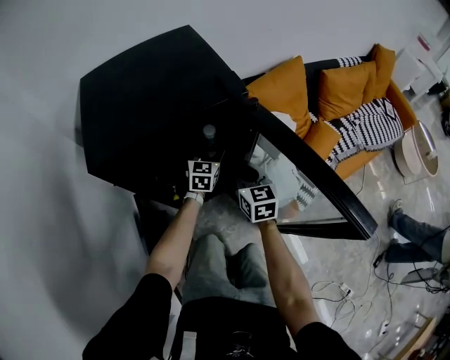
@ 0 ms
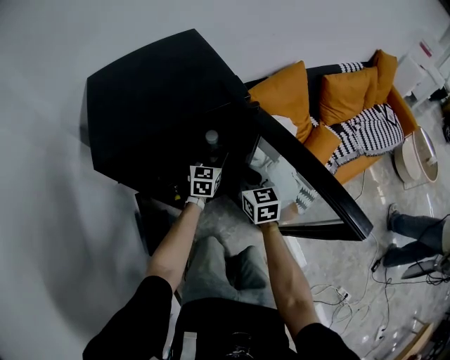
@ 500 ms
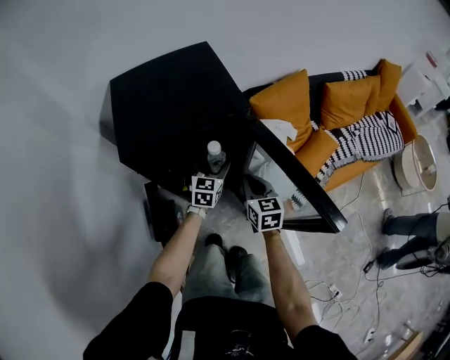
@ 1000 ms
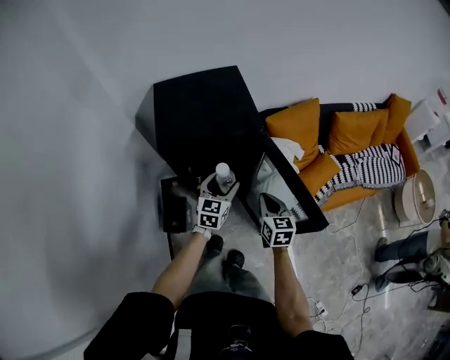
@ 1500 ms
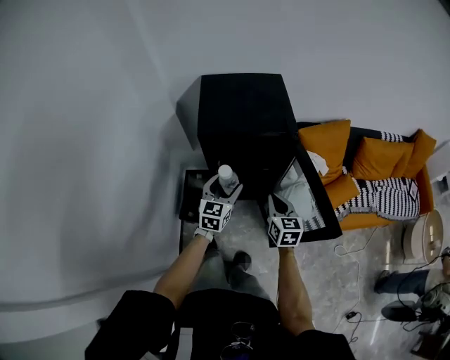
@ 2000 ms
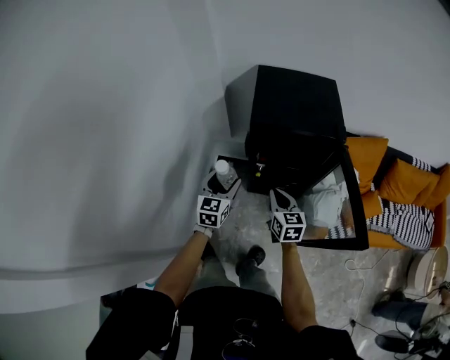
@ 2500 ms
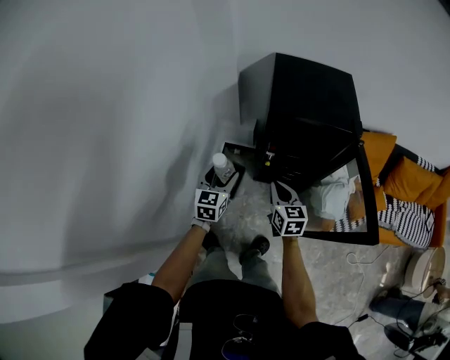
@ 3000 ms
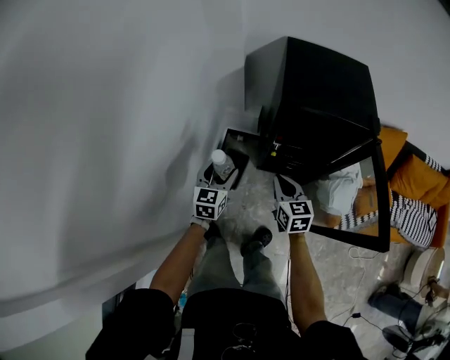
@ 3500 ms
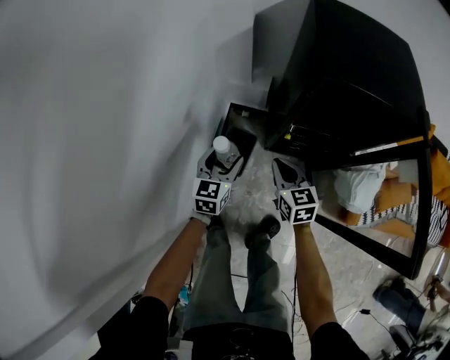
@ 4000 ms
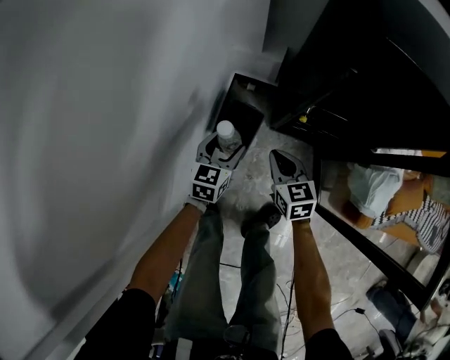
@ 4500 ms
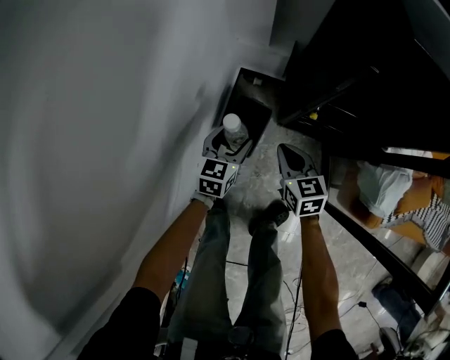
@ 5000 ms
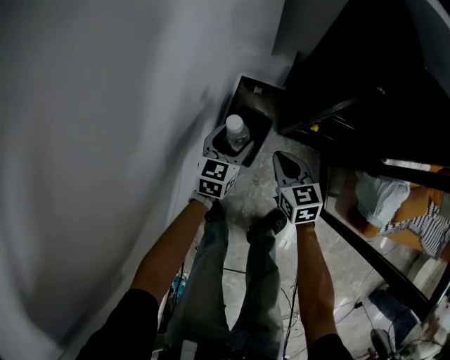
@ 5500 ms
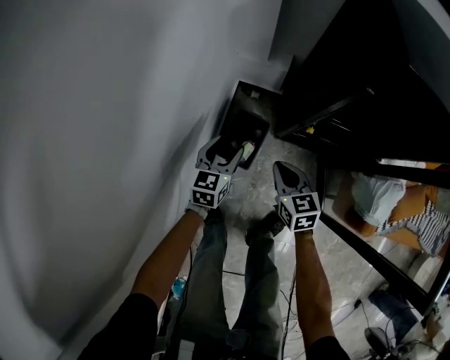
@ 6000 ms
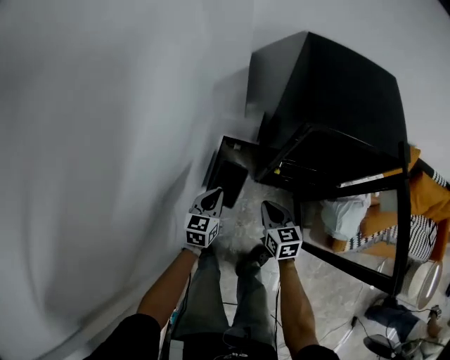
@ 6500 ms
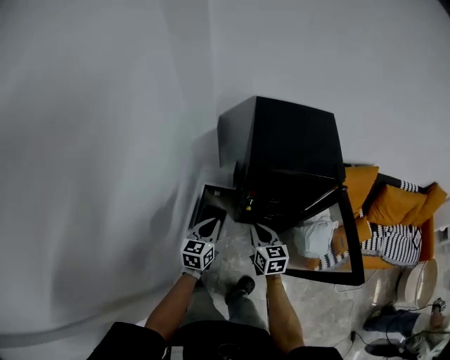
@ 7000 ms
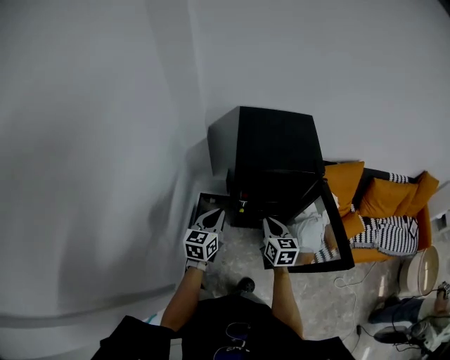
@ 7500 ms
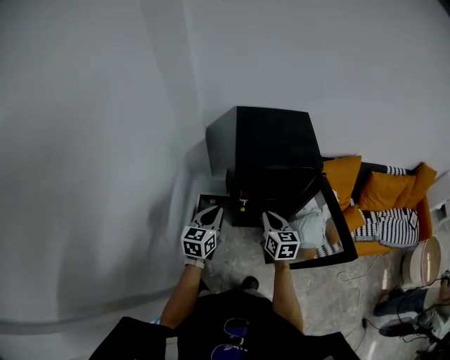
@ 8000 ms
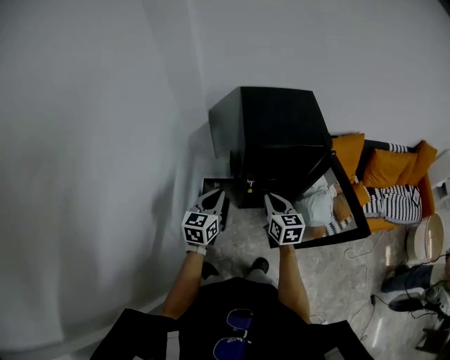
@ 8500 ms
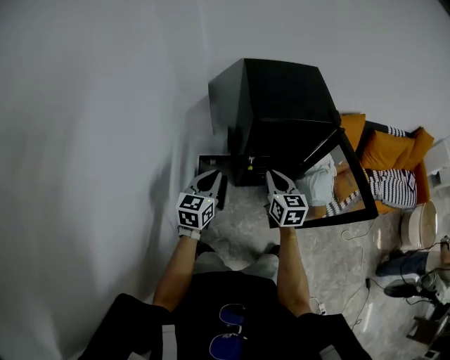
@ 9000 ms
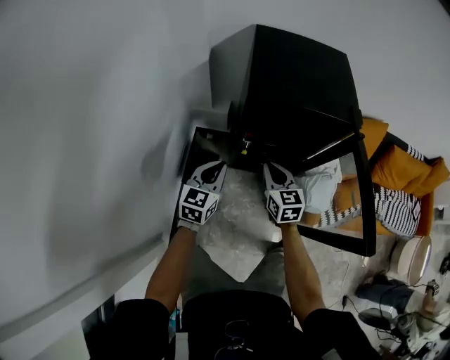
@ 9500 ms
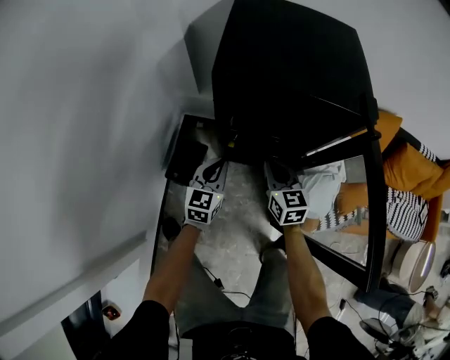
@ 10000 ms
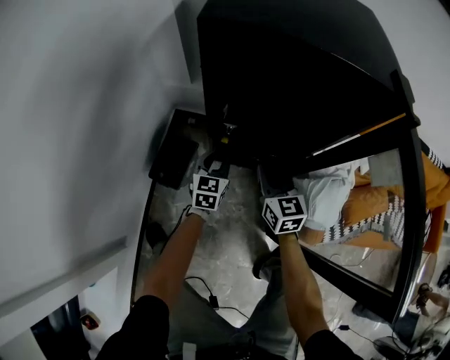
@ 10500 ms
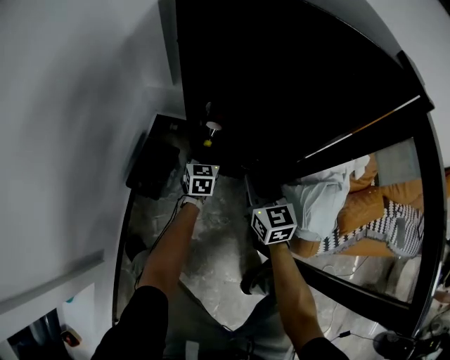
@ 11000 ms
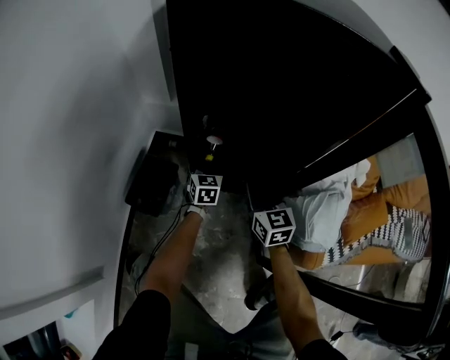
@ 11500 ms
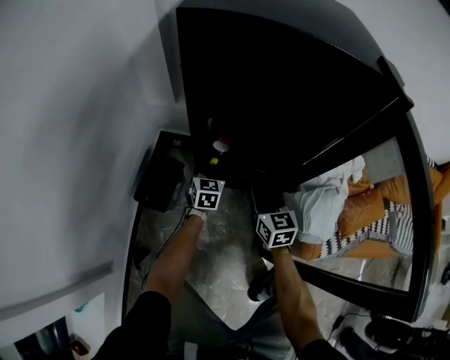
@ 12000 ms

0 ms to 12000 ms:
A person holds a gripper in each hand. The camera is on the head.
0 ms to 2000 ms: The right gripper shifts approximately 25 cm upward and backward; the left gripper travels backward, upward and to the left by roughly 40 cm.
2000 ms to 4000 ms: The grippers both shift to the left and downward by roughly 35 cm. The right gripper changes its angle by some 30 degrees.
4000 ms to 6000 ms: Both grippers move downward, roughly 15 cm.
6000 ms to 8000 ms: The left gripper travels upward by roughly 40 cm, and closes; the right gripper moves upward and to the right, about 40 cm, and changes its angle by roughly 30 degrees.
8000 ms to 10000 ms: The right gripper is displaced downward and forward by roughly 25 cm. Meanwhile the left gripper goes some 30 cm downward.
10000 ms to 12000 ms: The two grippers go about 20 cm downward. The left gripper opens.

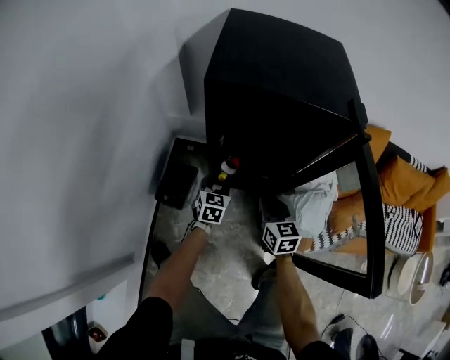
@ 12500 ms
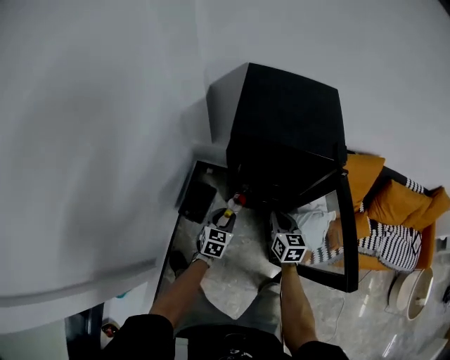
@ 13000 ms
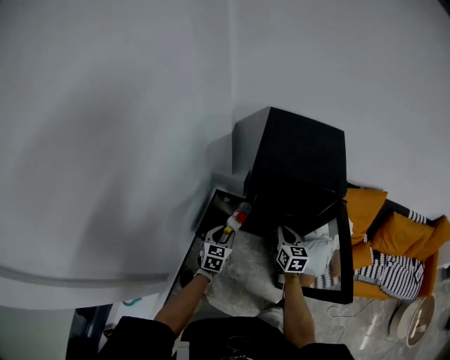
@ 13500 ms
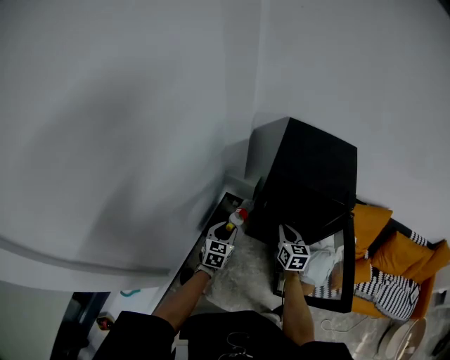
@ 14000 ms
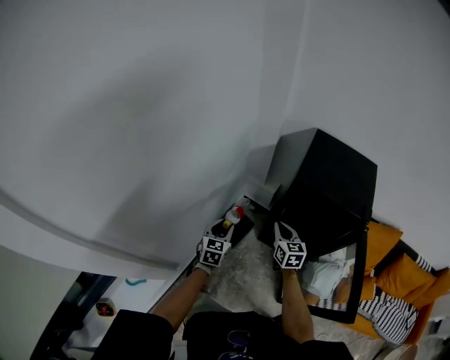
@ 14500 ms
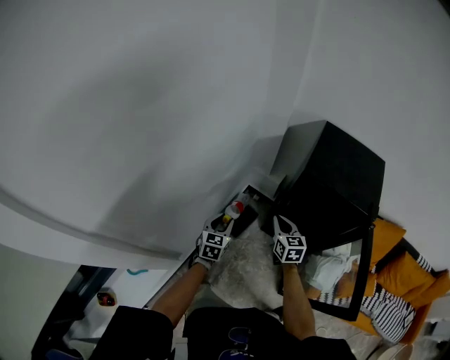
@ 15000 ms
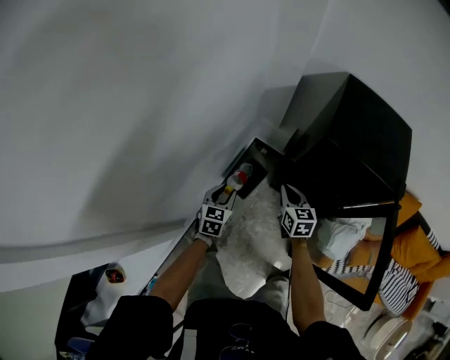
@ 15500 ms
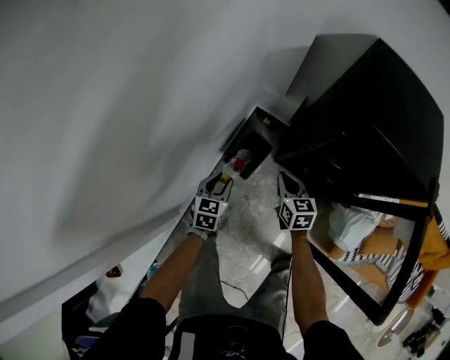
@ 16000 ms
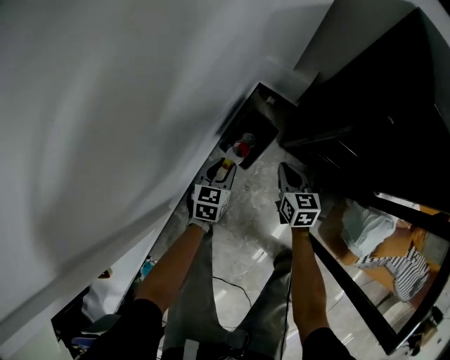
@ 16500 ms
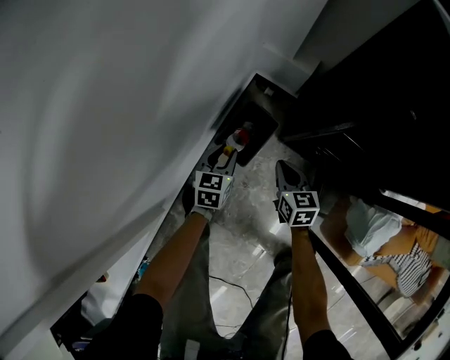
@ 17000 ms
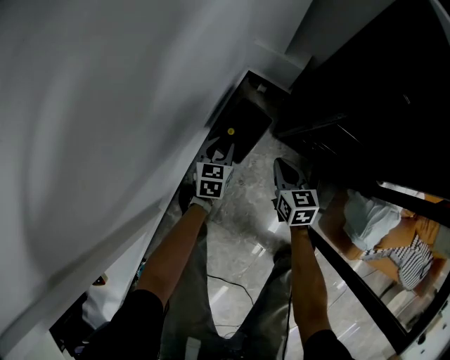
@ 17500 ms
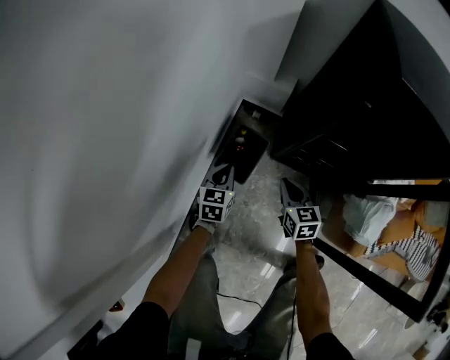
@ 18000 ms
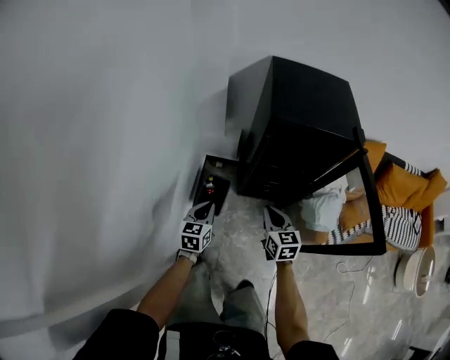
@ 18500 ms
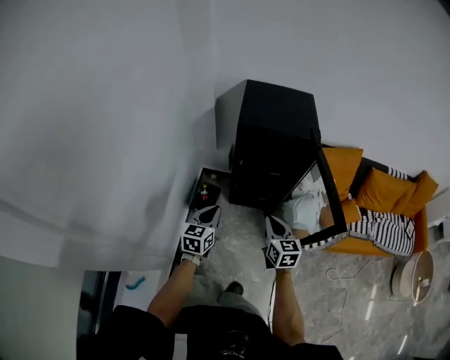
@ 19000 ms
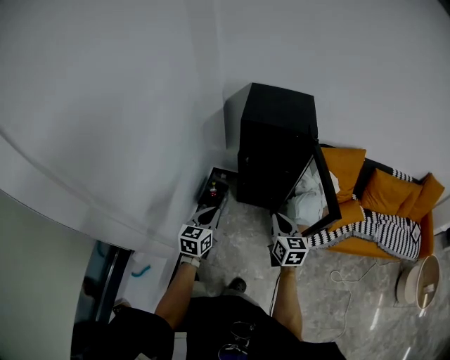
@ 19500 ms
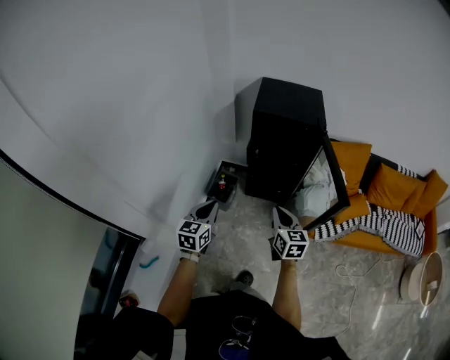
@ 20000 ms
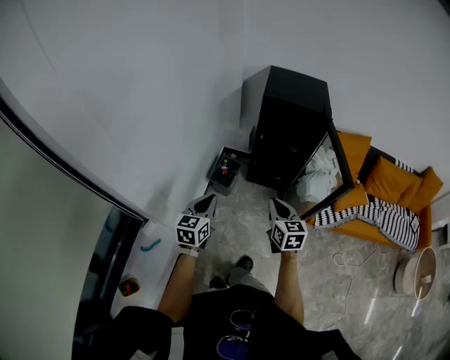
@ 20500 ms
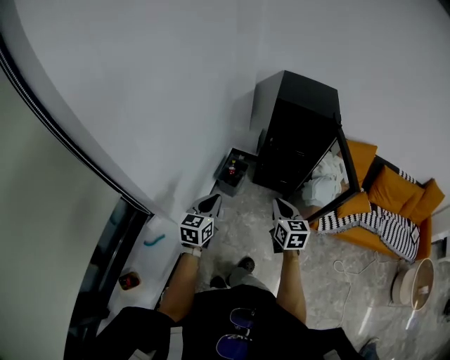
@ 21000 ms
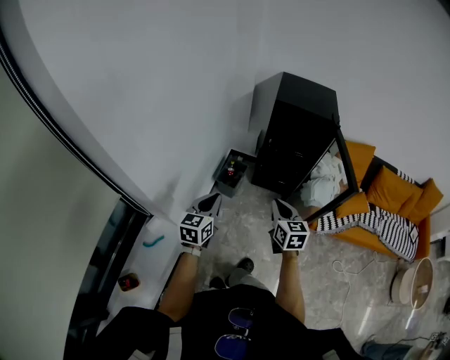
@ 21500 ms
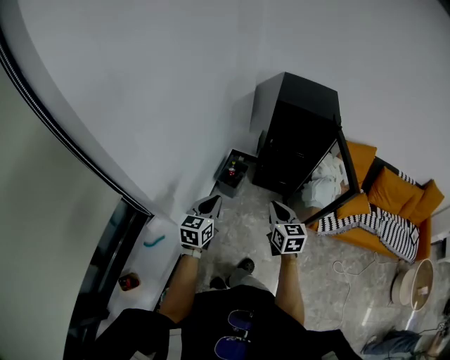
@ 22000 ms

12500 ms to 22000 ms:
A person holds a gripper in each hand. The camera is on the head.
12500 ms to 14500 ms: The right gripper moves upward and to the left, approximately 30 cm. Meanwhile the left gripper moves upward, to the left and backward, some 40 cm, and turns by some 20 degrees.
14500 ms to 16500 ms: Both grippers move downward, some 35 cm.
16500 ms to 18000 ms: The left gripper reaches roughly 5 cm downward, then returns, and closes.
18000 ms to 20000 ms: Both grippers move upward and backward, approximately 60 cm. The right gripper changes its angle by some 20 degrees.
20000 ms to 22000 ms: The left gripper moves backward and to the left, approximately 15 cm, while the right gripper goes some 15 cm to the left and backward.

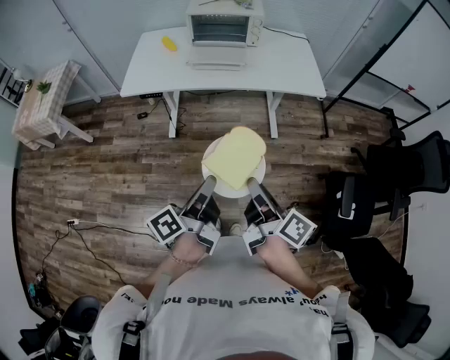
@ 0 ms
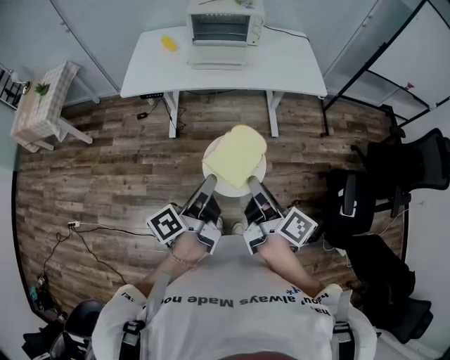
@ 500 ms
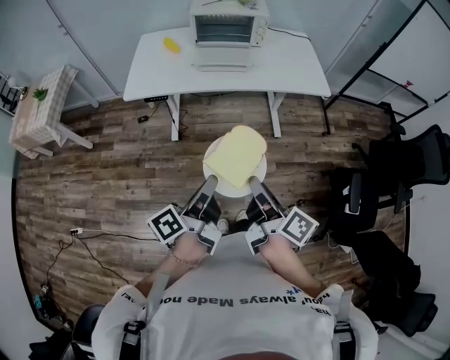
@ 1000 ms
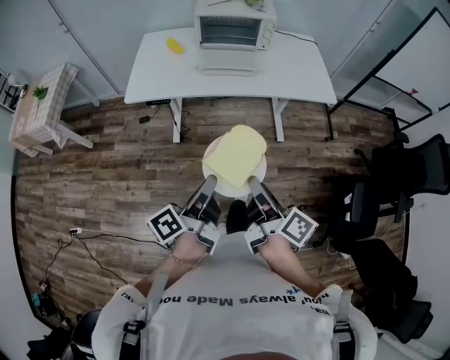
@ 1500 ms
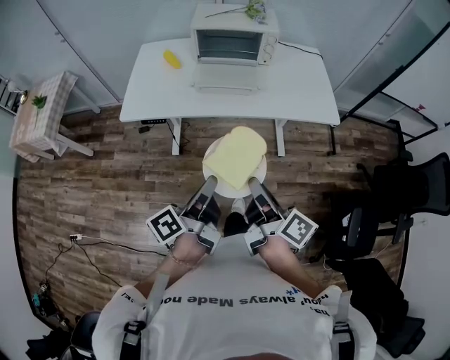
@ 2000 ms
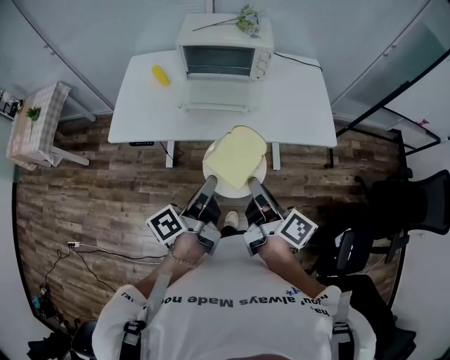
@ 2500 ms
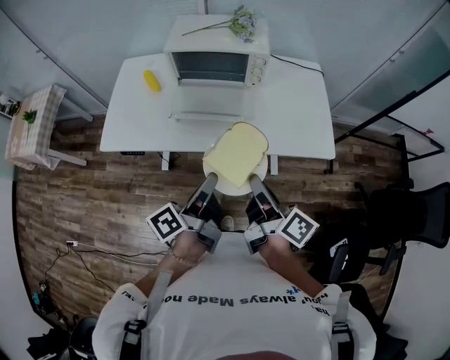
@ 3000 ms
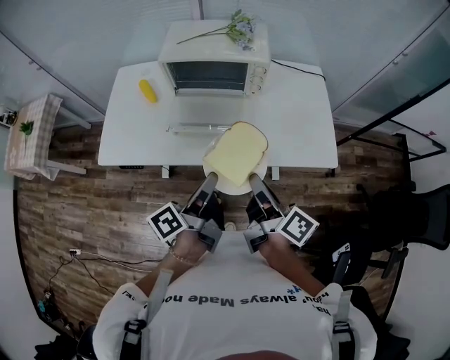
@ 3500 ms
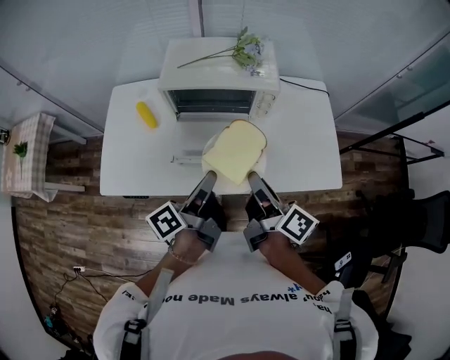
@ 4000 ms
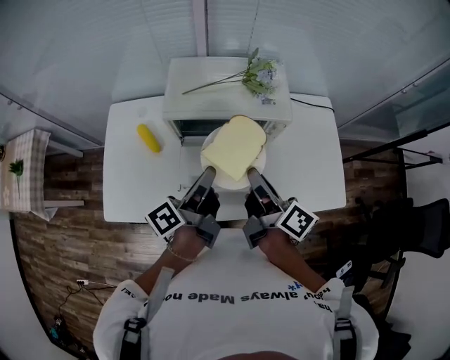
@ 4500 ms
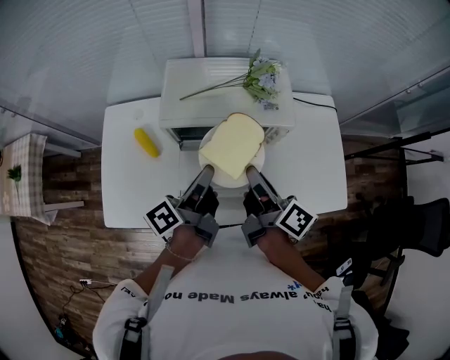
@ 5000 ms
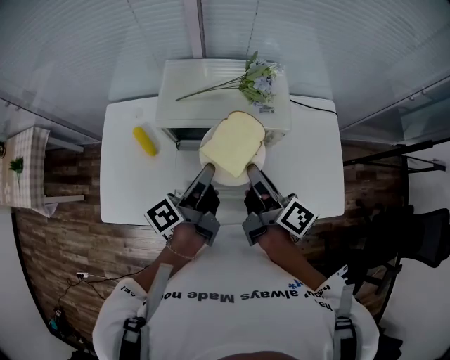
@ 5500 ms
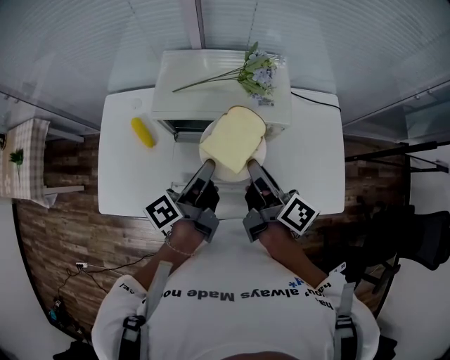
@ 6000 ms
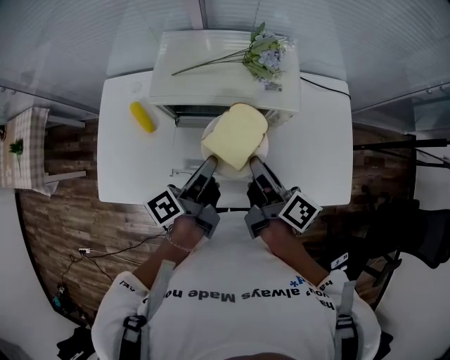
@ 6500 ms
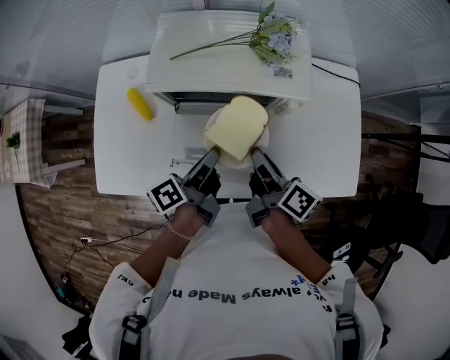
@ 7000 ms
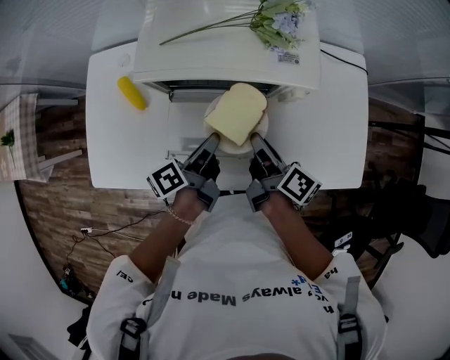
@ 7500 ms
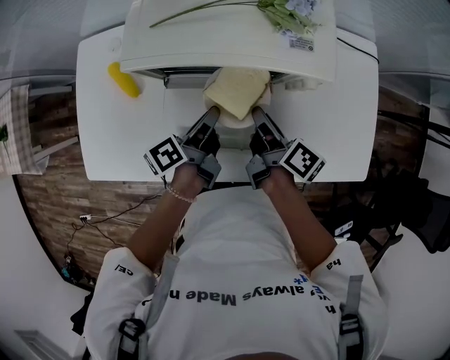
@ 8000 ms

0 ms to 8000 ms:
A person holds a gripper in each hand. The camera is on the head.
0 ms to 2000 ms: The right gripper moves about 20 cm.
2000 ms to 4000 ms: The right gripper shifts by roughly 40 cm.
4000 ms to 6000 ms: The right gripper ends up approximately 15 cm from where it was.
6000 ms to 8000 ms: The right gripper travels downward by approximately 20 cm.
